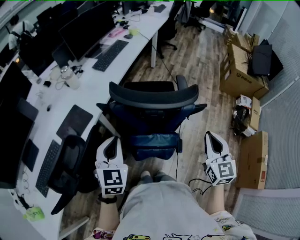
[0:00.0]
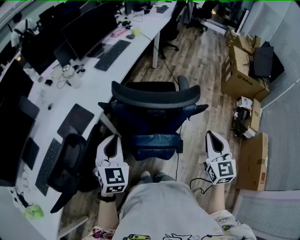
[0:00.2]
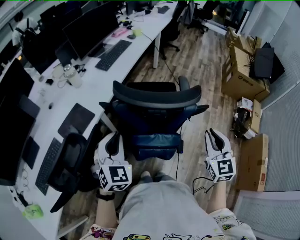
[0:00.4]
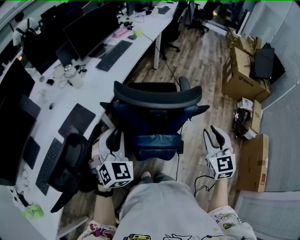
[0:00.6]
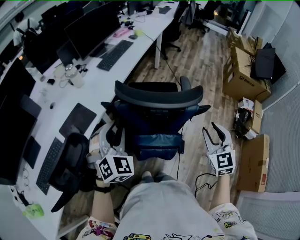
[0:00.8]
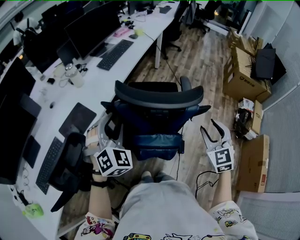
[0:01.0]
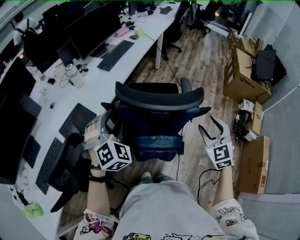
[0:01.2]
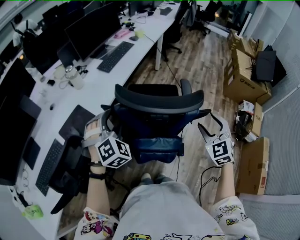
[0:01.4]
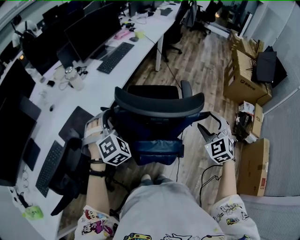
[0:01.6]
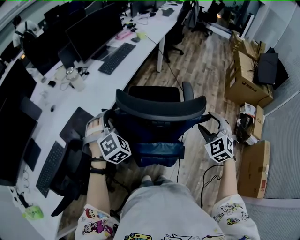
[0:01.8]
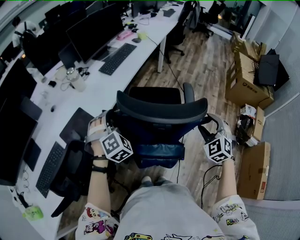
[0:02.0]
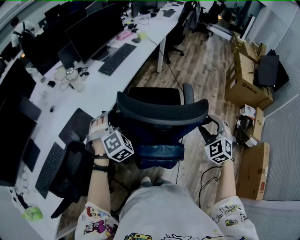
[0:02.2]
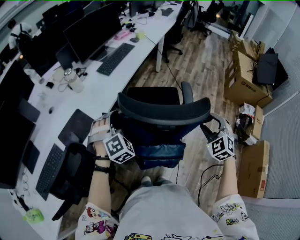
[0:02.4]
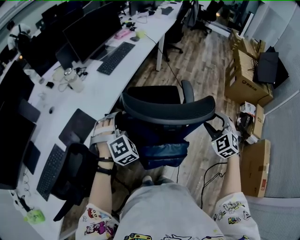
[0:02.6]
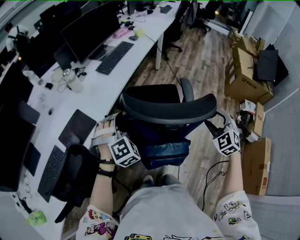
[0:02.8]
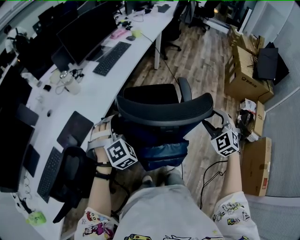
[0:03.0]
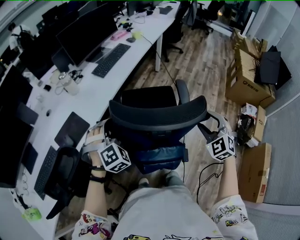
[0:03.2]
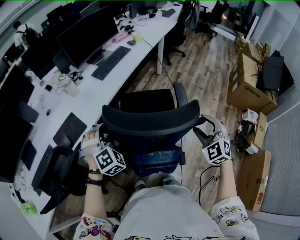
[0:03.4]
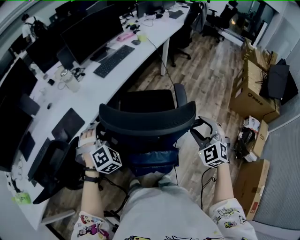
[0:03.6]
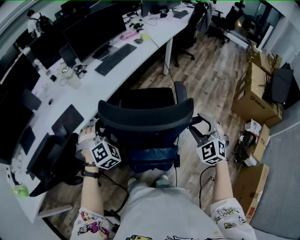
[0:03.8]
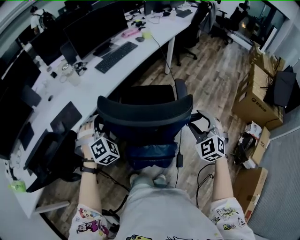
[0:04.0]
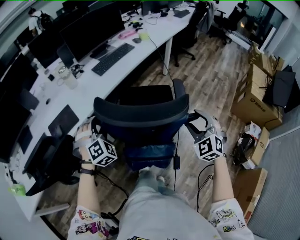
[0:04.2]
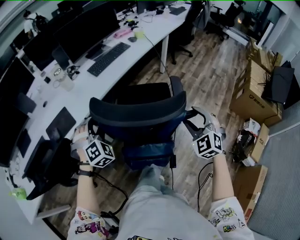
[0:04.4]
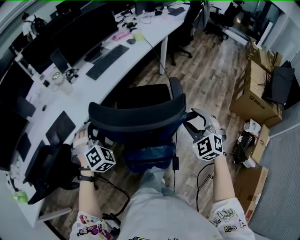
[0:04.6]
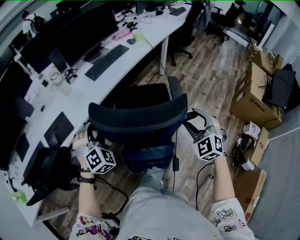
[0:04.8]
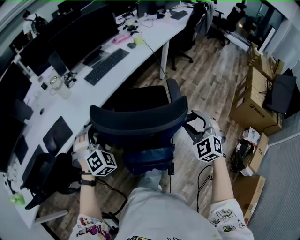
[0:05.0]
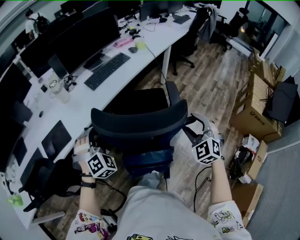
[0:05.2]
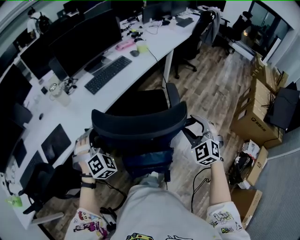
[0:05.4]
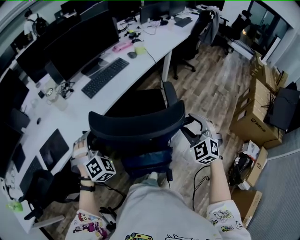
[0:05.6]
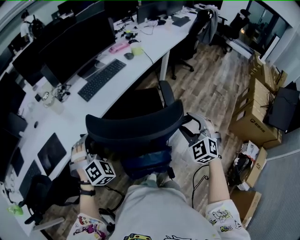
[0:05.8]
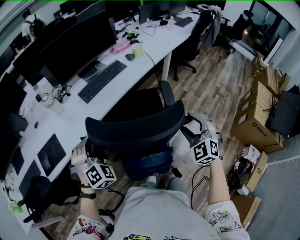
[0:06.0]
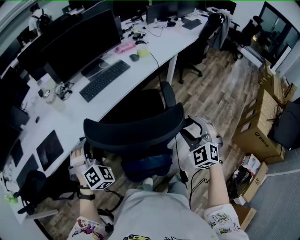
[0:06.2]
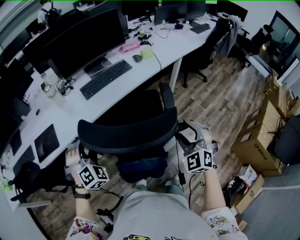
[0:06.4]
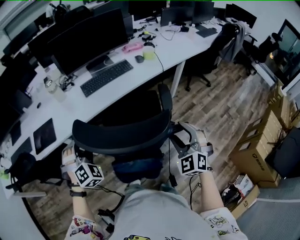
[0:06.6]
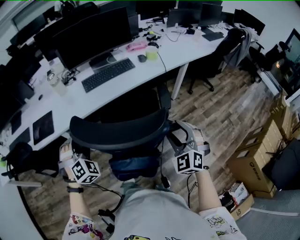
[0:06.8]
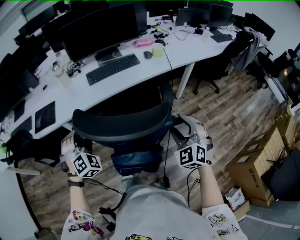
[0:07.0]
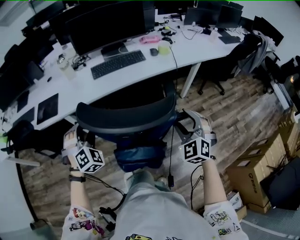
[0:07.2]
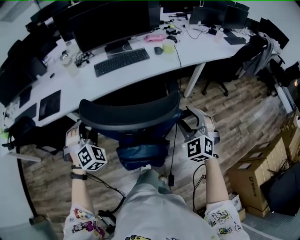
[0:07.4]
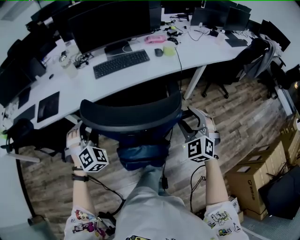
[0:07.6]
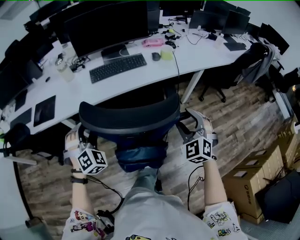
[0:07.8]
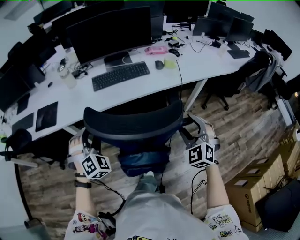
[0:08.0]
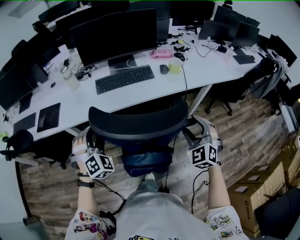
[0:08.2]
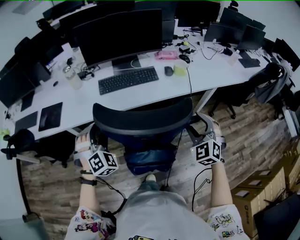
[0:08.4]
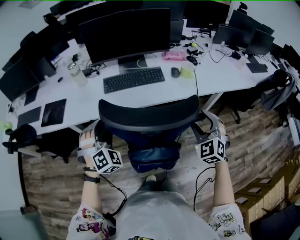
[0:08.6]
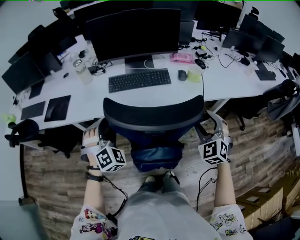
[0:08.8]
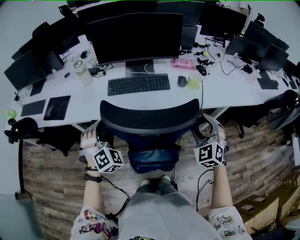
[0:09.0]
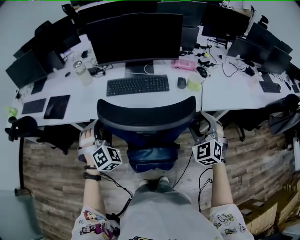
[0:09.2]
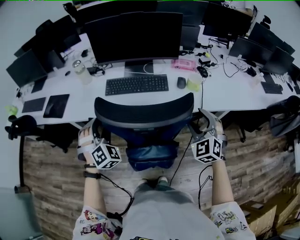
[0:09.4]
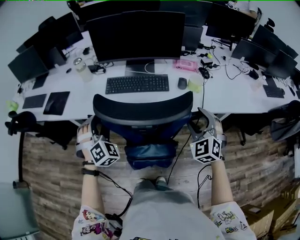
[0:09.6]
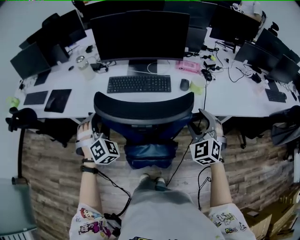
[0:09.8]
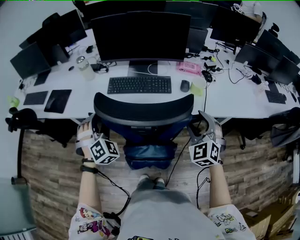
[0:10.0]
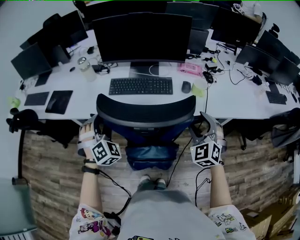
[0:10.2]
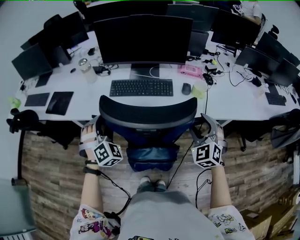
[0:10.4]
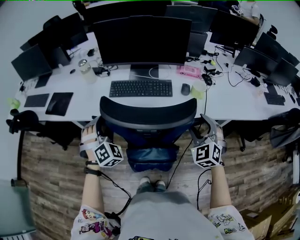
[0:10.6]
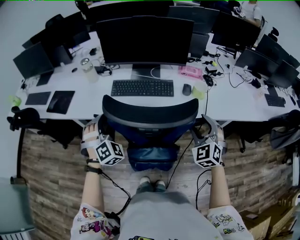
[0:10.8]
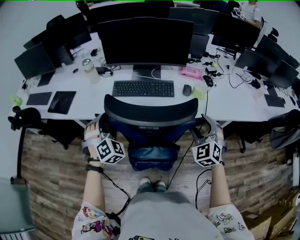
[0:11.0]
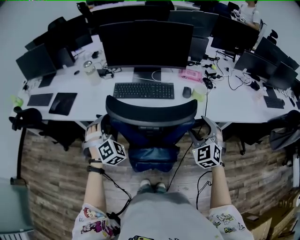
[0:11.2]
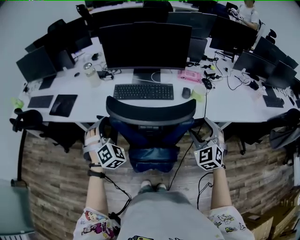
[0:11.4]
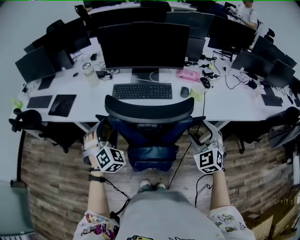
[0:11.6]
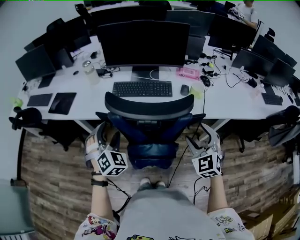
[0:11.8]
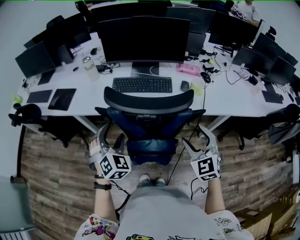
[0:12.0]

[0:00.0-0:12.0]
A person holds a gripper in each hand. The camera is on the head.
0:00.0 to 0:01.6: Both grippers move forward, about 10 cm. The left gripper rotates around the line of its fingers by about 40 degrees, clockwise from behind, and opens its fingers; the right gripper rotates approximately 40 degrees, and opens.
0:01.6 to 0:03.0: The right gripper ends up approximately 5 cm from where it was.
0:03.0 to 0:04.4: The right gripper heads to the right and forward, covering some 10 cm. The left gripper moves to the right, some 5 cm.
0:04.4 to 0:06.0: The left gripper goes about 15 cm forward and to the right. Meanwhile the right gripper heads forward and to the right, covering approximately 20 cm.
0:06.0 to 0:07.6: The left gripper is displaced to the right by about 10 cm, and rotates some 30 degrees, while the right gripper travels to the right and forward by some 15 cm, and rotates approximately 20 degrees.
0:07.6 to 0:09.0: Both grippers move forward and to the right, approximately 20 cm.
0:09.0 to 0:10.4: The right gripper is displaced forward by roughly 5 cm.
0:10.4 to 0:12.0: The grippers both shift backward by roughly 10 cm.

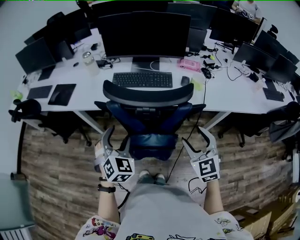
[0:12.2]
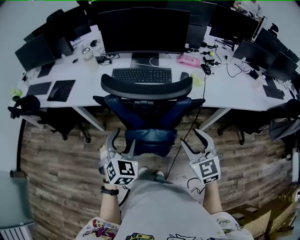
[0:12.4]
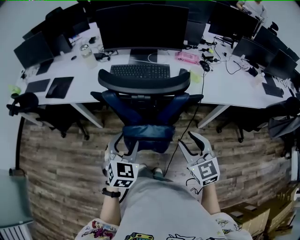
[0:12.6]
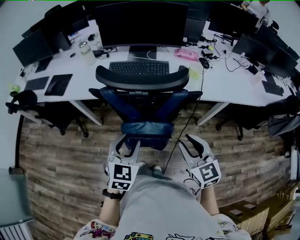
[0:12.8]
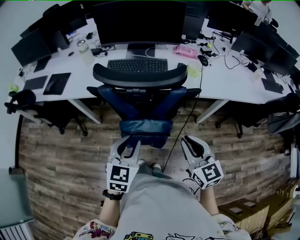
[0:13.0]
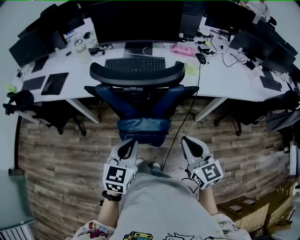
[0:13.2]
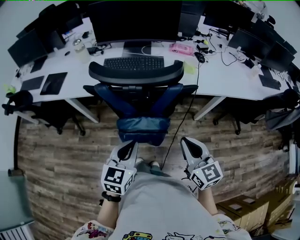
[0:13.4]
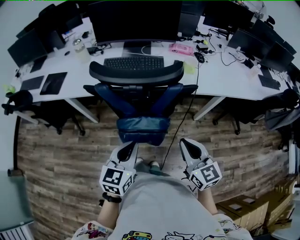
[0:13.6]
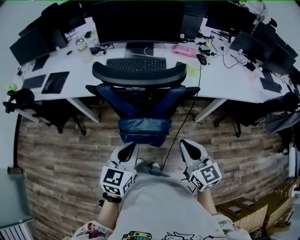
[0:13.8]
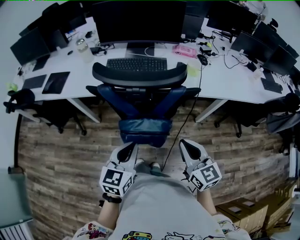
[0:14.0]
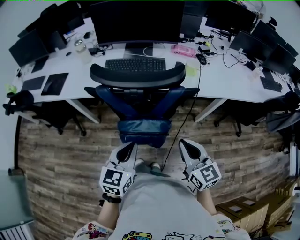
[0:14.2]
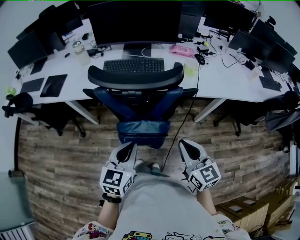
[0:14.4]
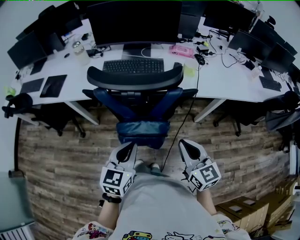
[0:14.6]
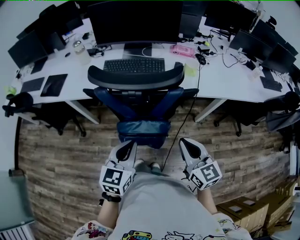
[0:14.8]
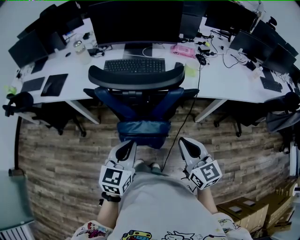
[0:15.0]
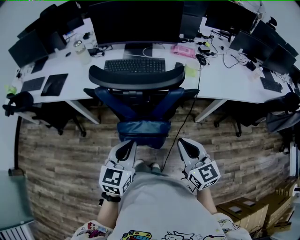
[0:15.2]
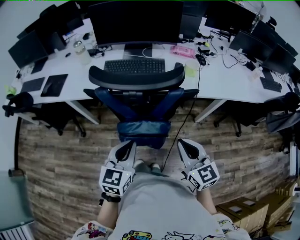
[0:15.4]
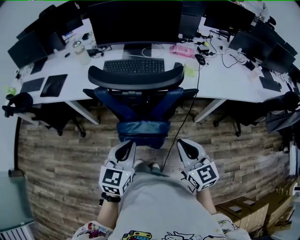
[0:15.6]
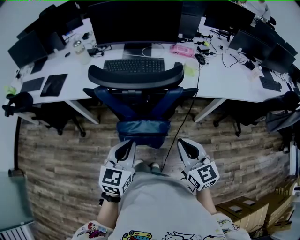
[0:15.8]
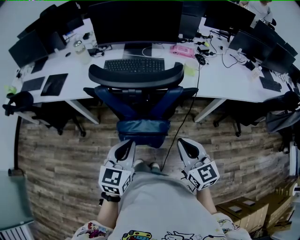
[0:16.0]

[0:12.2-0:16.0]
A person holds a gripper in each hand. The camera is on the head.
0:12.2 to 0:13.4: The left gripper is displaced backward and to the right by some 15 cm, changes its angle by approximately 50 degrees, and closes up; the right gripper goes about 10 cm backward, changes its angle by about 30 degrees, and closes up.
0:13.4 to 0:16.0: The grippers make only small movements.

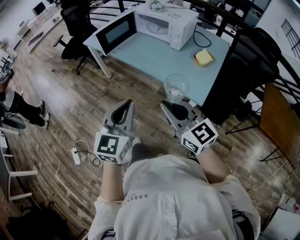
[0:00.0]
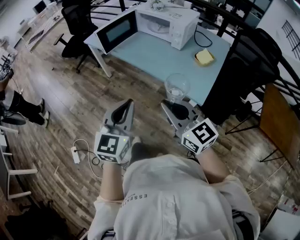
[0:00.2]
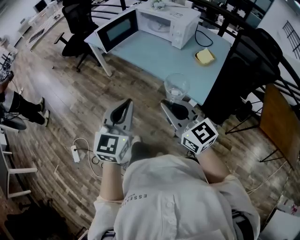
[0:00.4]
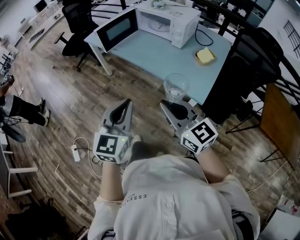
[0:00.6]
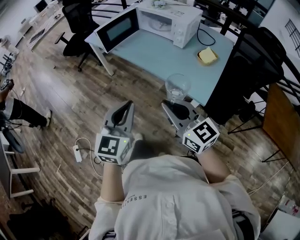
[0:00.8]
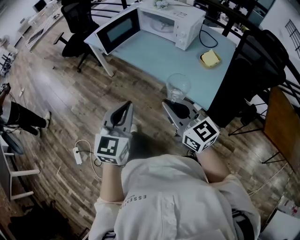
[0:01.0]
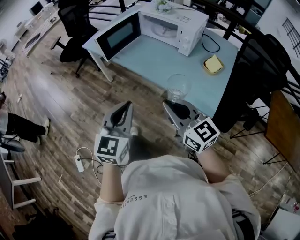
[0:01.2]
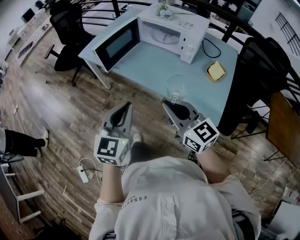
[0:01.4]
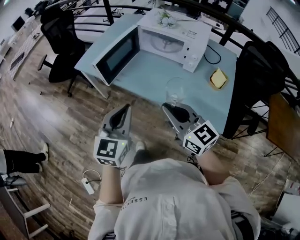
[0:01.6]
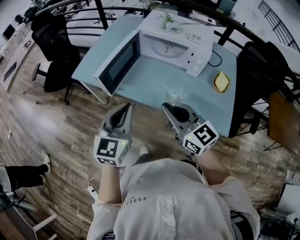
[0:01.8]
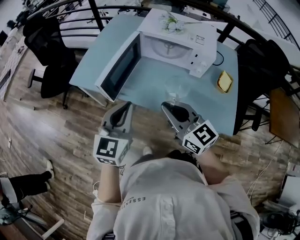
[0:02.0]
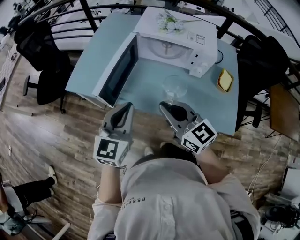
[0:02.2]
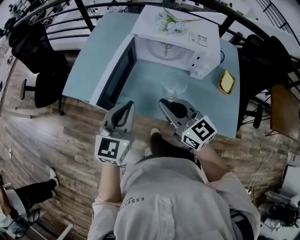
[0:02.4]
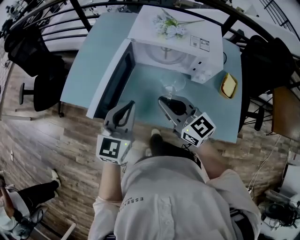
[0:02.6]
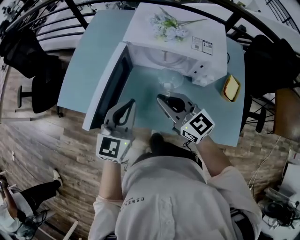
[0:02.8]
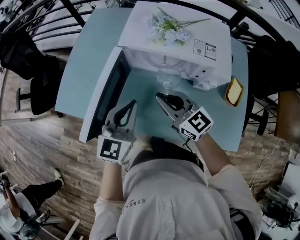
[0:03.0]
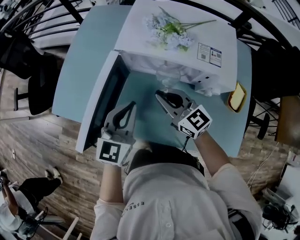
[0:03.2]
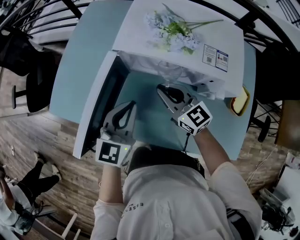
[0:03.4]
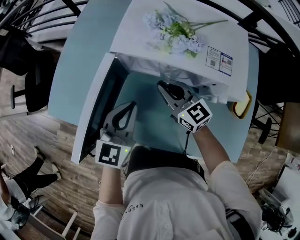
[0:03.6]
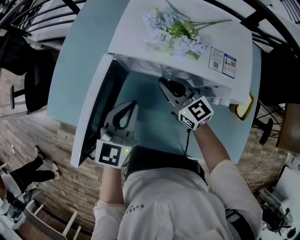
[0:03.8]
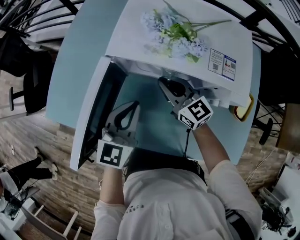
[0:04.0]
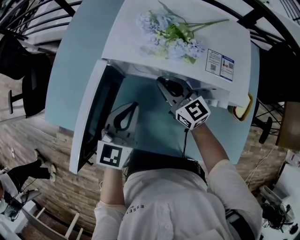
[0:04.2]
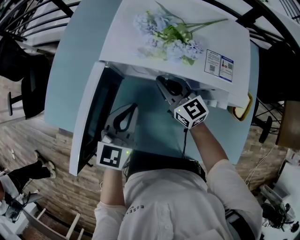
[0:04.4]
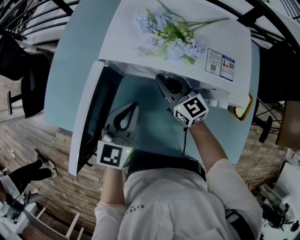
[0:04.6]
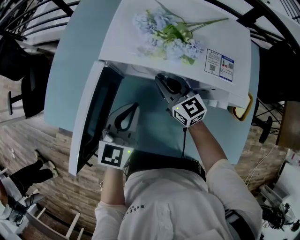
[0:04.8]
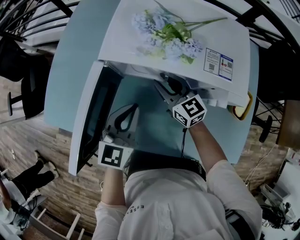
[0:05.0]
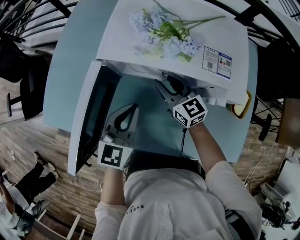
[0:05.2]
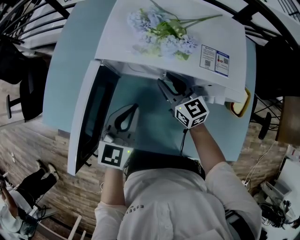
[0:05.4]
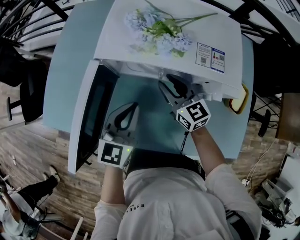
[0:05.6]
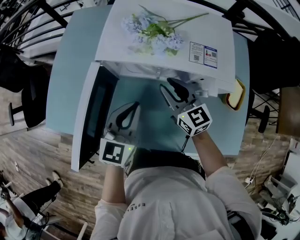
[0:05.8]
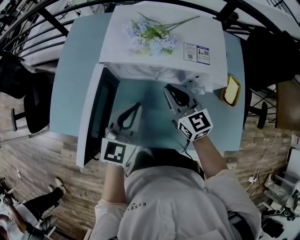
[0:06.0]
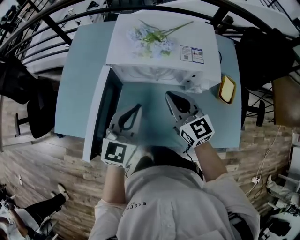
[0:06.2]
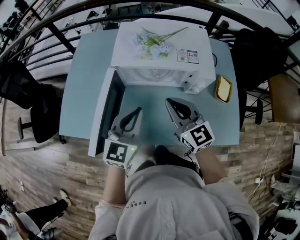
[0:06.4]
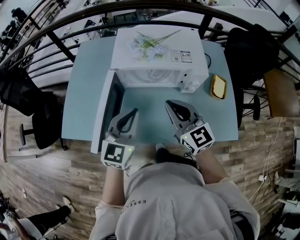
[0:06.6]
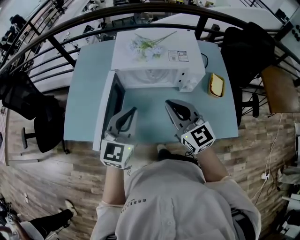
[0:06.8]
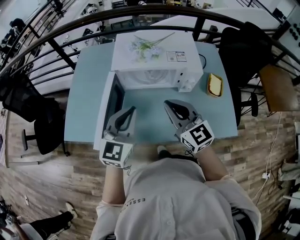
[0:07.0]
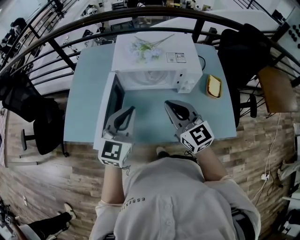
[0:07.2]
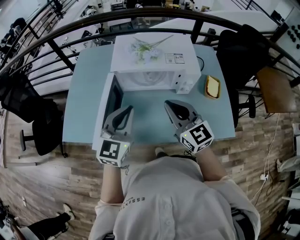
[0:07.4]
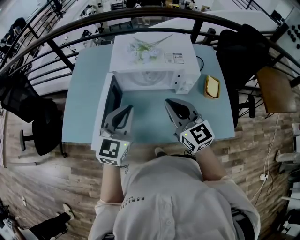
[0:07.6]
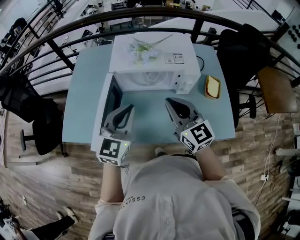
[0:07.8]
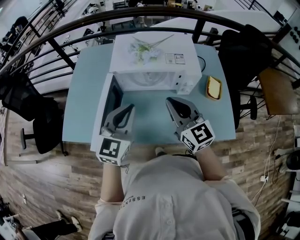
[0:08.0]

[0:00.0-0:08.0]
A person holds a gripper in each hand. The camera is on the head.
0:00.0 to 0:01.6: Both grippers travel together forward, roughly 30 cm.
0:01.6 to 0:03.2: The grippers both shift forward by some 35 cm.
0:03.2 to 0:04.8: The left gripper moves downward, about 5 cm, while the right gripper moves forward and downward, about 15 cm.
0:04.8 to 0:06.4: The right gripper goes approximately 25 cm upward and backward, and opens and closes again. The left gripper shifts about 15 cm upward and backward.
0:06.4 to 0:08.0: Both grippers travel together upward, some 5 cm.
